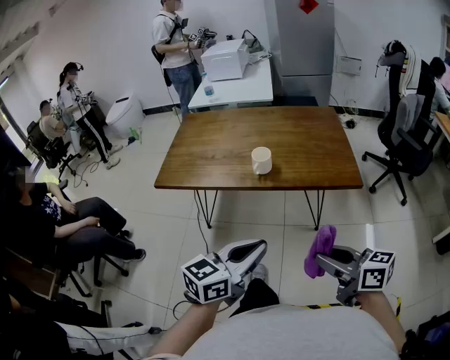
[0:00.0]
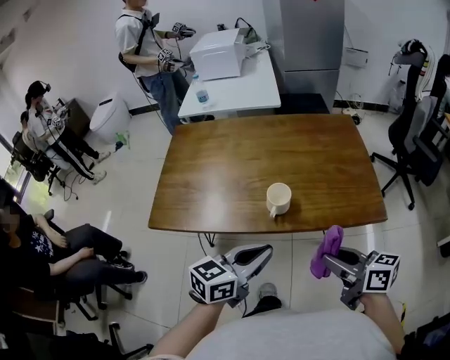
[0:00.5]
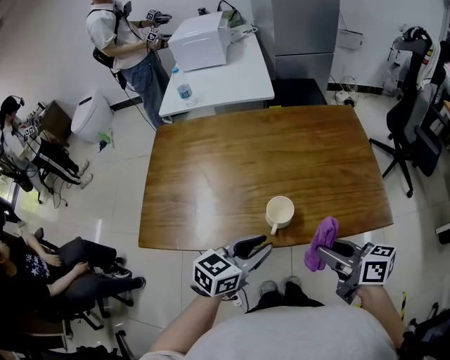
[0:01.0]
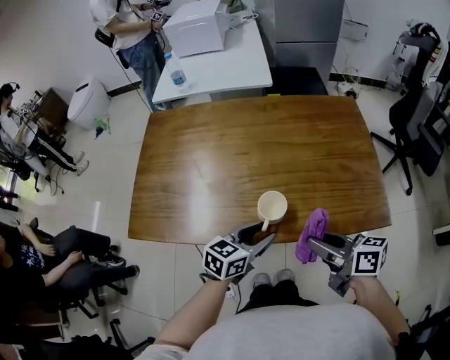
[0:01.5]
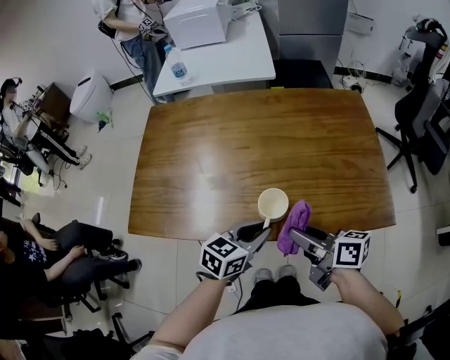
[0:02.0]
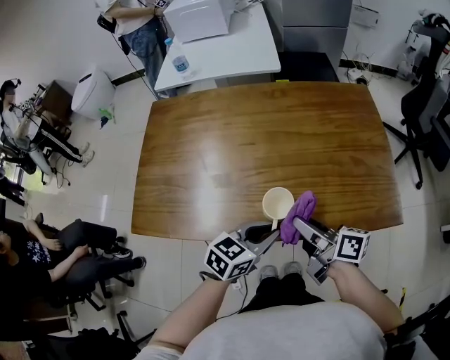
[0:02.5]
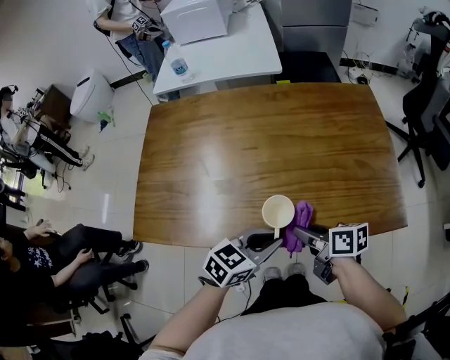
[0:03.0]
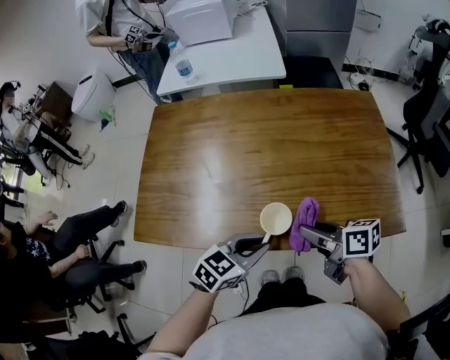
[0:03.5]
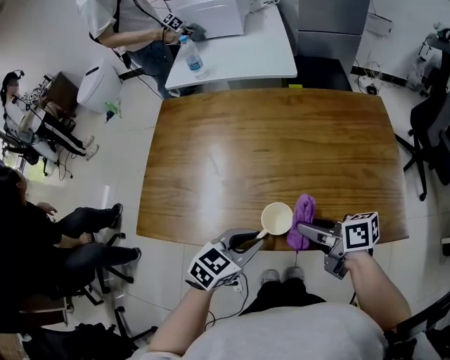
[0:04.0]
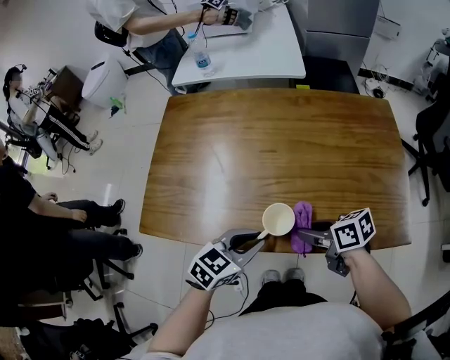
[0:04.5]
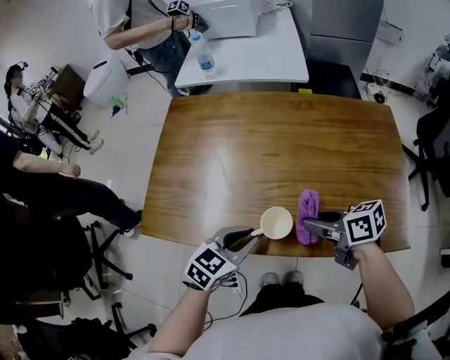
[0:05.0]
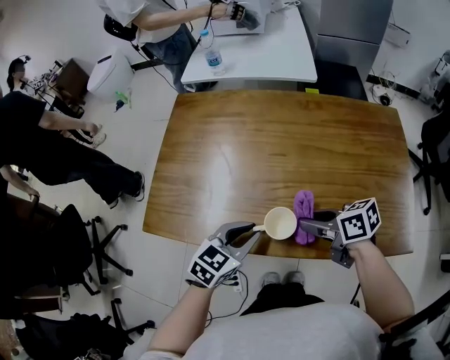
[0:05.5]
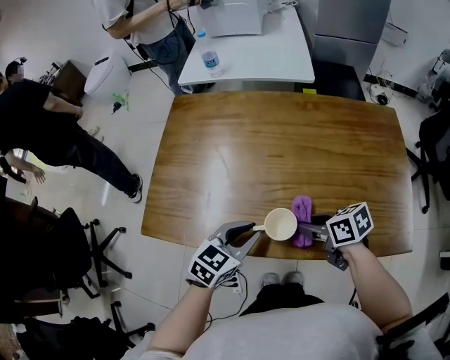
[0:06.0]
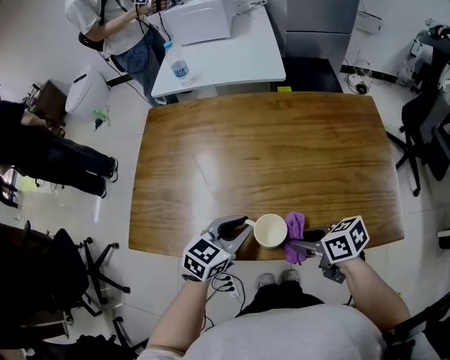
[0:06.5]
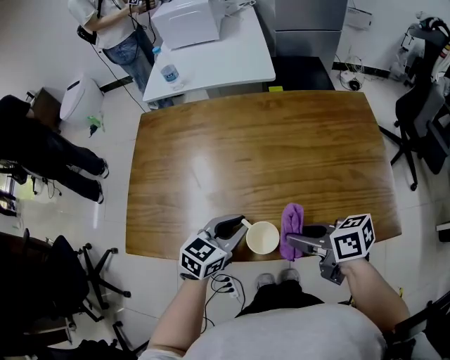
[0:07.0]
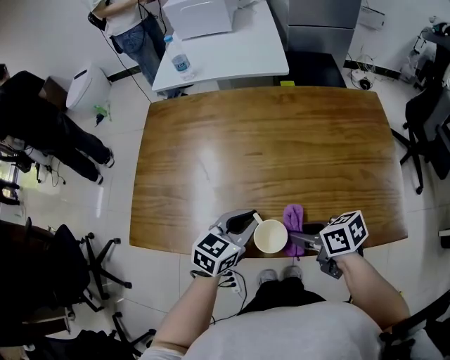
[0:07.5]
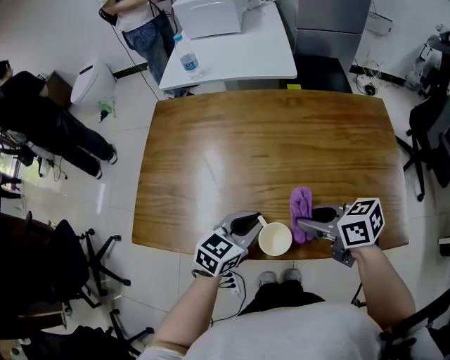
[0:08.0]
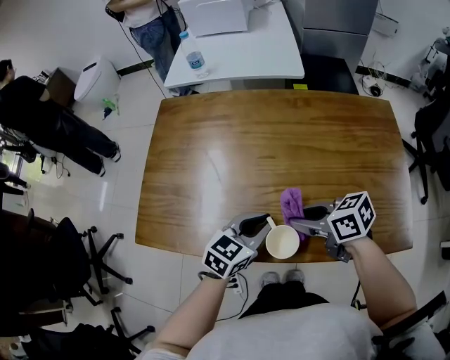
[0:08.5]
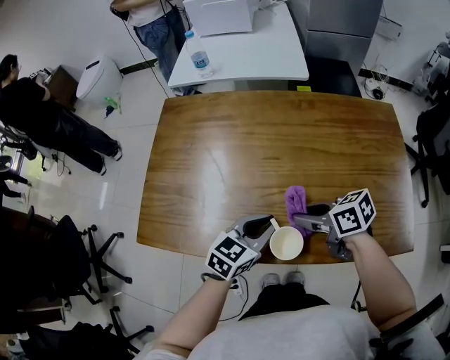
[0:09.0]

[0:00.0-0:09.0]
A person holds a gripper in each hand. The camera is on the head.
0:00.0 to 0:02.0: The left gripper is displaced forward and downward by about 40 cm, rotates some 20 degrees, and opens and closes again, while the right gripper is displaced forward by about 40 cm, and swivels about 20 degrees.
0:02.0 to 0:04.5: The right gripper moves up and down over some 10 cm, changing direction 2 times, and rotates approximately 30 degrees. The left gripper changes place by roughly 5 cm.
0:04.5 to 0:07.0: The right gripper moves up and down over about 5 cm, changing direction 2 times. Meanwhile the left gripper changes place by roughly 5 cm.
0:07.0 to 0:09.0: The right gripper goes up and down, approximately 5 cm each way, reversing 2 times.

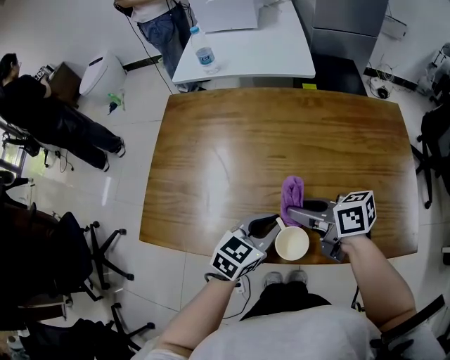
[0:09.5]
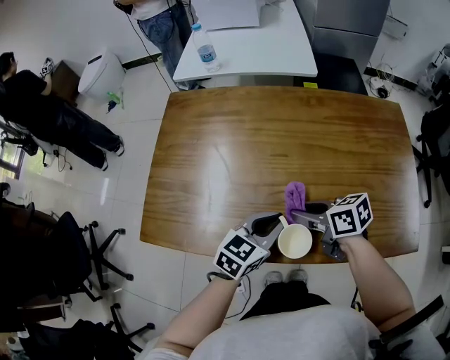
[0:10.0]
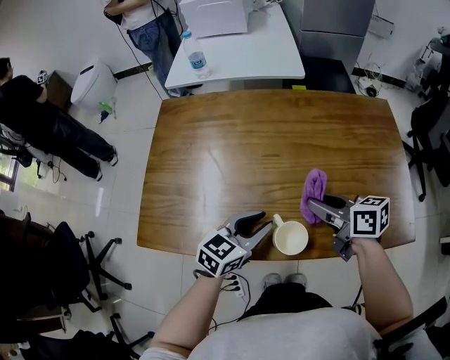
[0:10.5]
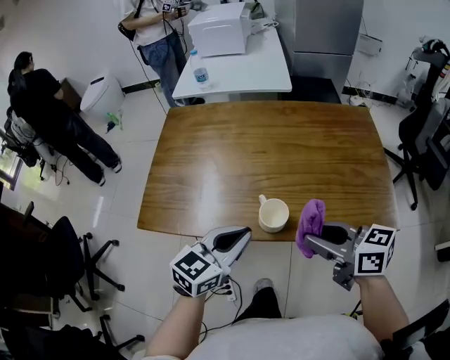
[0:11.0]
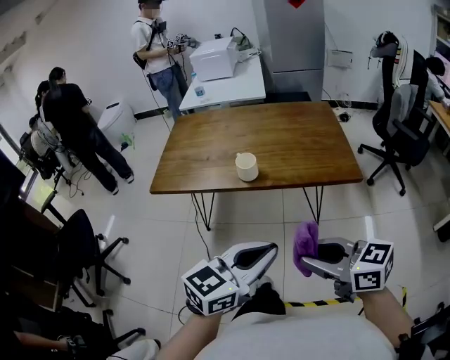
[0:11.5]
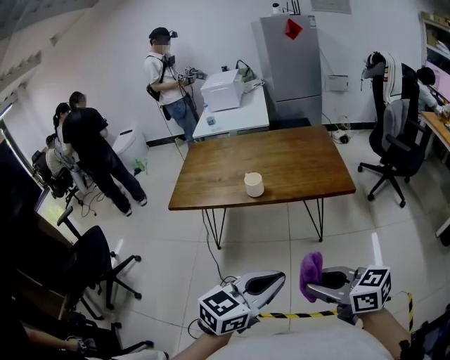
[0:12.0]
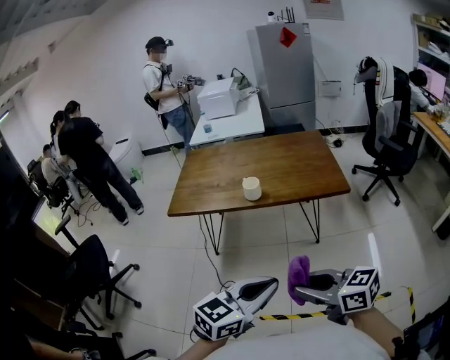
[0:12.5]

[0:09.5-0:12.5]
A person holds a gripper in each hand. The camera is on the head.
0:09.5 to 0:11.0: The grippers both shift backward and upward by some 20 cm. The right gripper changes its angle by roughly 20 degrees.
0:11.0 to 0:12.5: The pair of grippers is taken backward, roughly 50 cm.

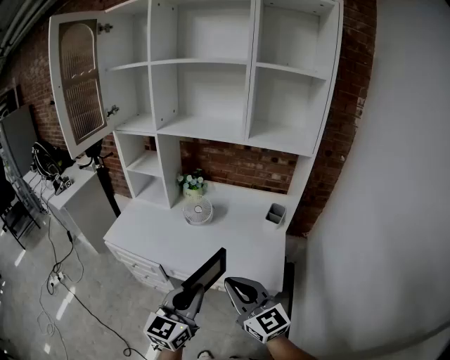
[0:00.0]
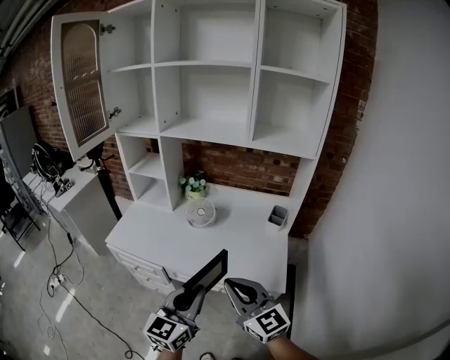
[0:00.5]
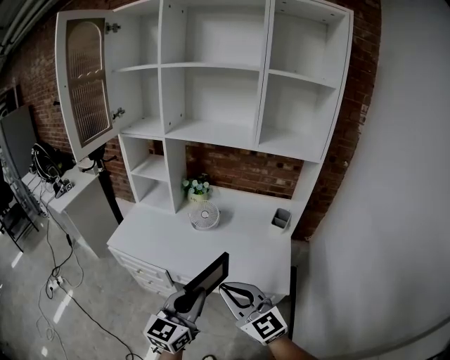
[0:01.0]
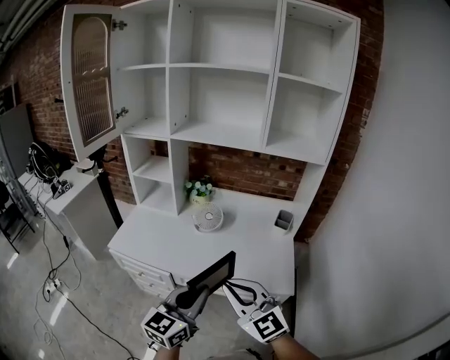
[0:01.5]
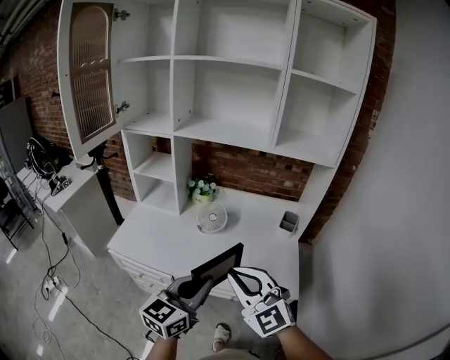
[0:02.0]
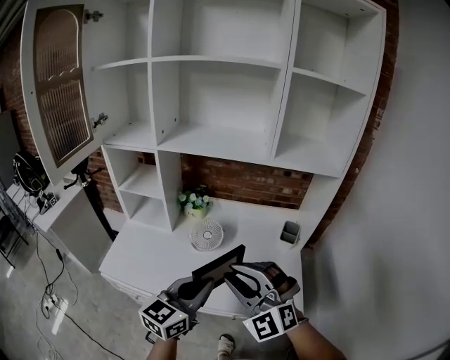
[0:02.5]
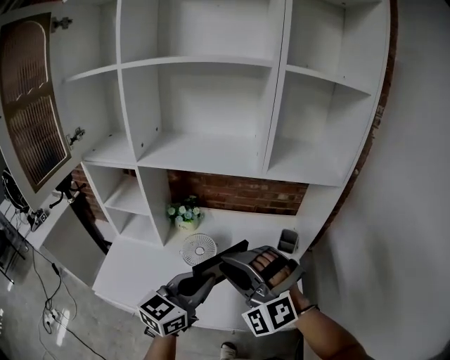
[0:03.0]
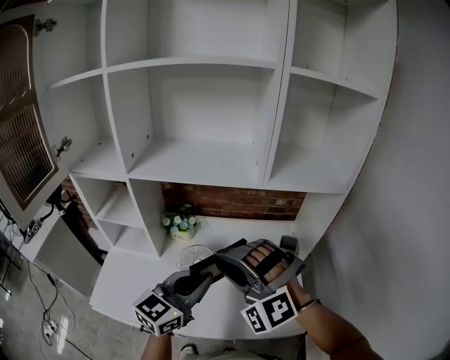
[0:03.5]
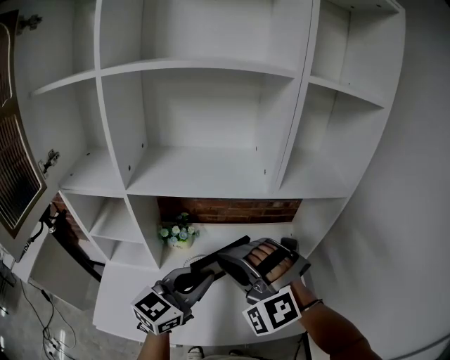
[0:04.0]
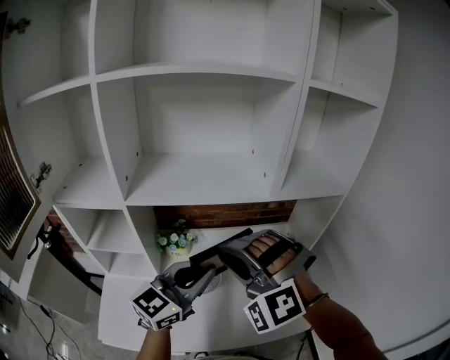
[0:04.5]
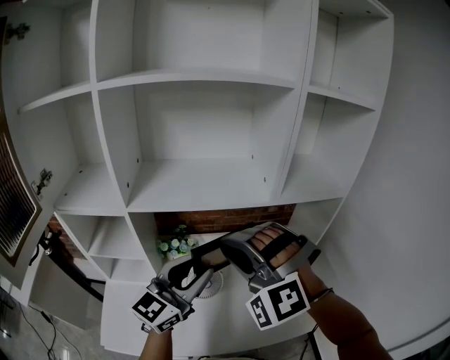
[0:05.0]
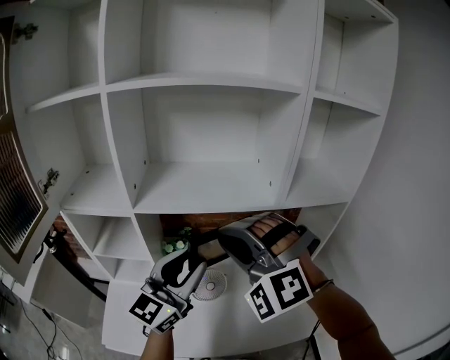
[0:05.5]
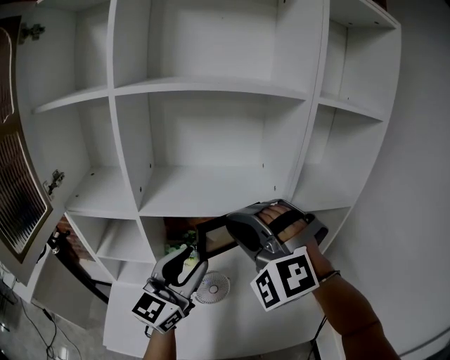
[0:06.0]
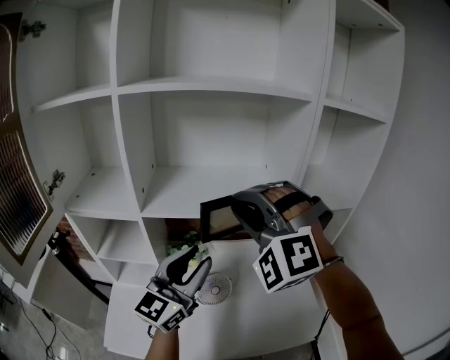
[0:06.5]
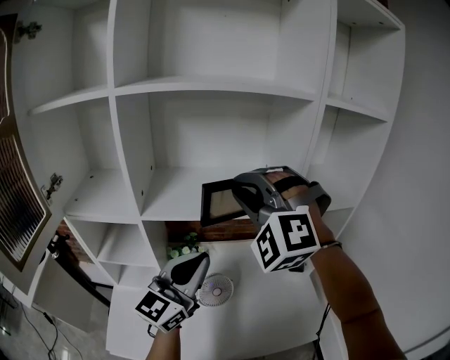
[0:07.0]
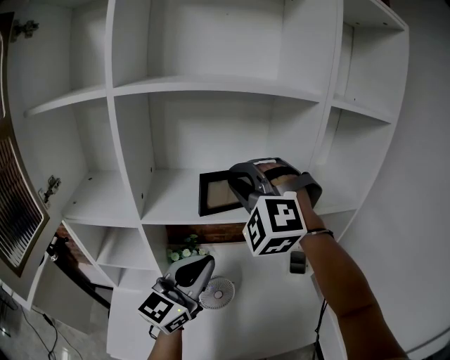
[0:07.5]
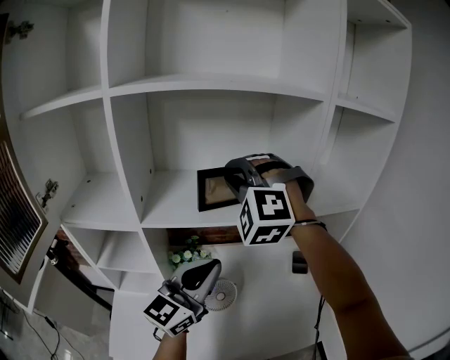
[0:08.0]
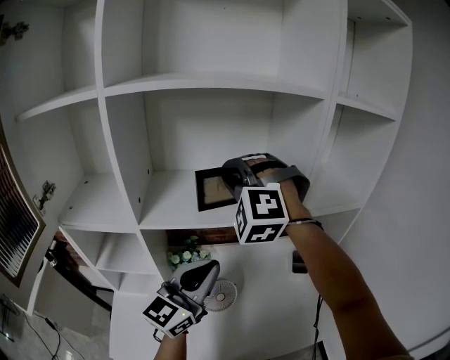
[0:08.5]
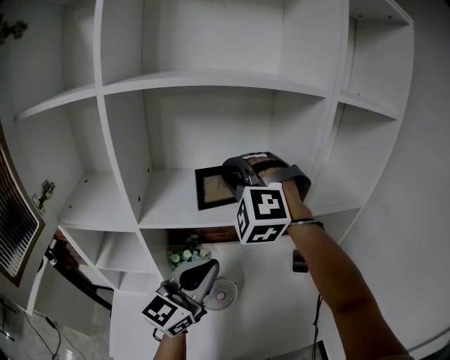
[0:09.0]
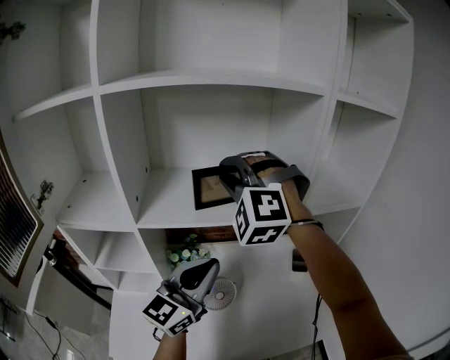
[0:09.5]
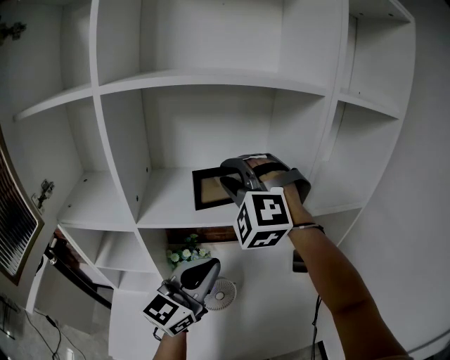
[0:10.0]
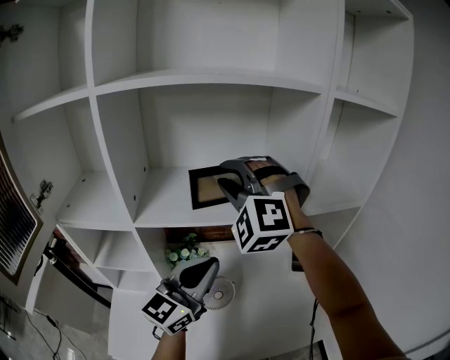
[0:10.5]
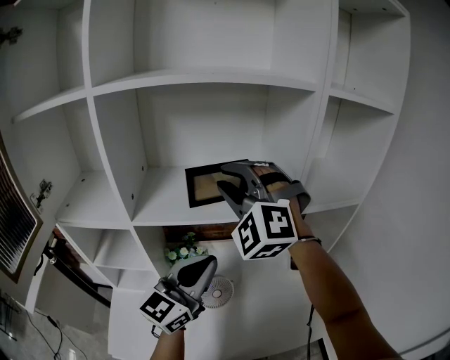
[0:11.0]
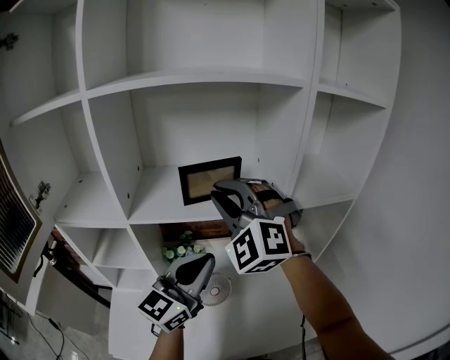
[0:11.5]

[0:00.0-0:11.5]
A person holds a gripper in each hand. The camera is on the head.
0:00.0 to 0:02.0: The left gripper heads forward and to the left, covering roughly 10 cm, while the right gripper travels to the left and forward by approximately 10 cm, and rotates roughly 30 degrees.
0:02.0 to 0:04.0: The grippers both shift forward by about 30 cm. The right gripper rotates around the line of its fingers by about 50 degrees, counterclockwise from behind, while the left gripper turns by some 20 degrees.
0:04.0 to 0:06.0: The right gripper heads upward and forward, covering approximately 10 cm. The left gripper travels to the left and upward by some 10 cm, and opens its fingers.
0:06.0 to 0:07.5: The left gripper closes up, while the right gripper travels forward by roughly 10 cm.
0:07.5 to 0:09.5: The right gripper changes place by roughly 5 cm.
0:09.5 to 0:11.5: The right gripper shifts about 5 cm backward, and changes its angle by roughly 20 degrees.

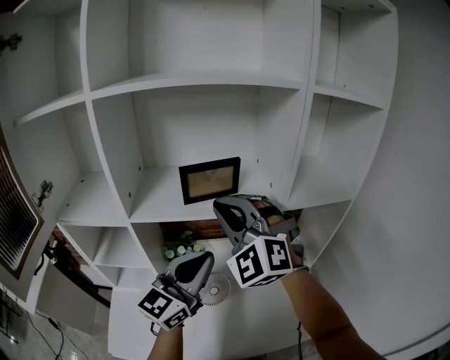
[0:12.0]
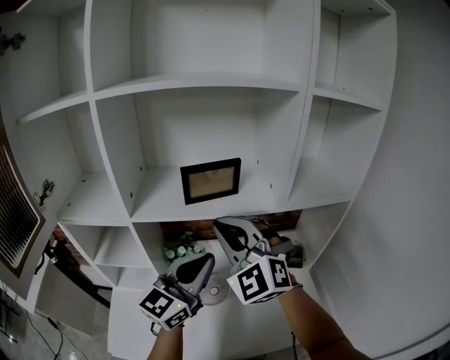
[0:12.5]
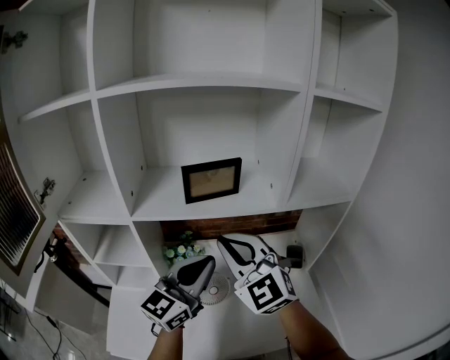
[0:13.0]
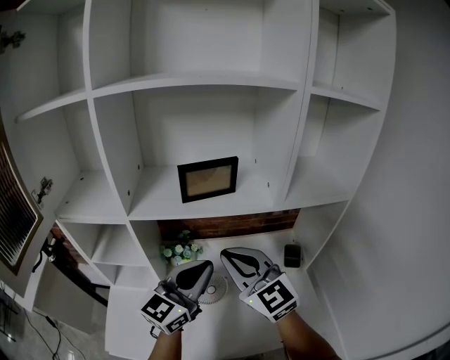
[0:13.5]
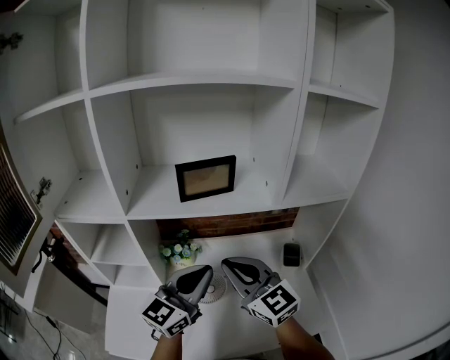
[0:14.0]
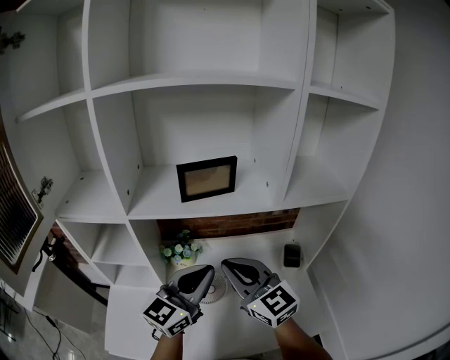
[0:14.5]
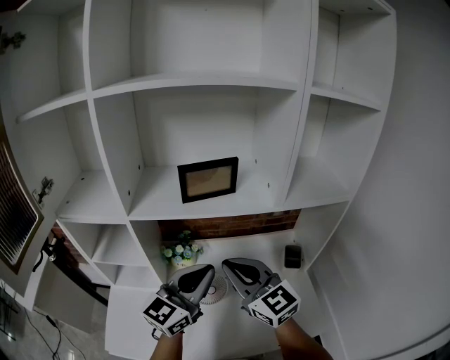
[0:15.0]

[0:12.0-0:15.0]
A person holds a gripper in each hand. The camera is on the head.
0:12.0 to 0:13.5: The right gripper shifts about 10 cm downward and backward, and rolls clockwise, seen from behind, by approximately 40 degrees.
0:13.5 to 0:15.0: There are only small adjustments of the grippers.
